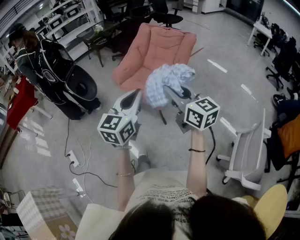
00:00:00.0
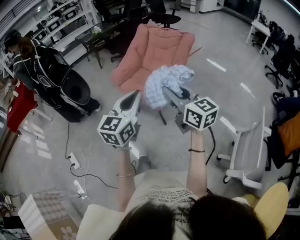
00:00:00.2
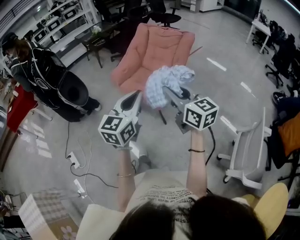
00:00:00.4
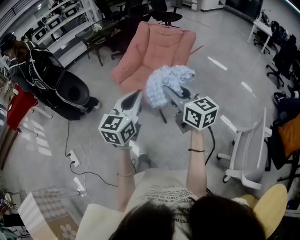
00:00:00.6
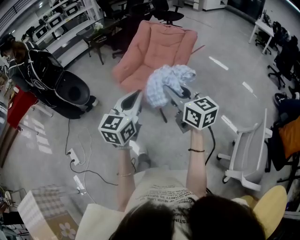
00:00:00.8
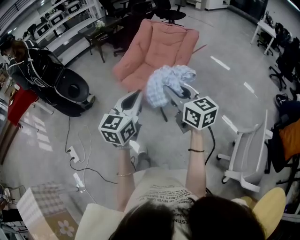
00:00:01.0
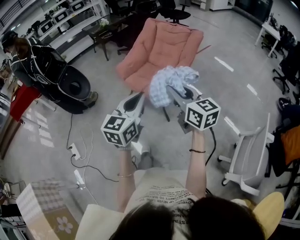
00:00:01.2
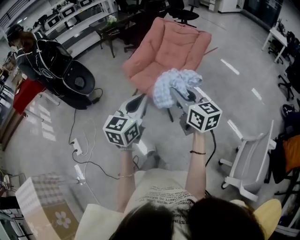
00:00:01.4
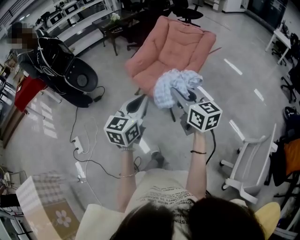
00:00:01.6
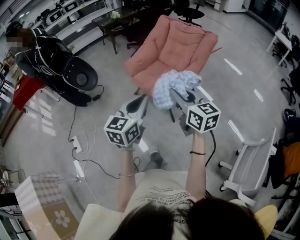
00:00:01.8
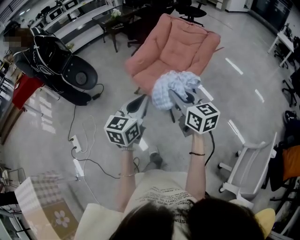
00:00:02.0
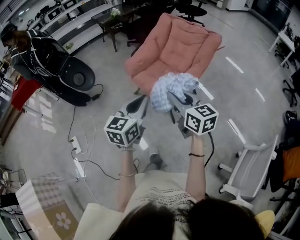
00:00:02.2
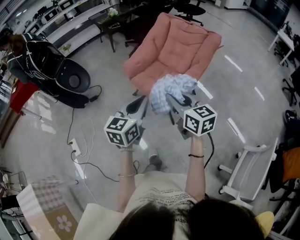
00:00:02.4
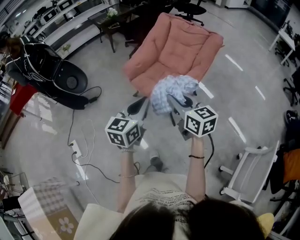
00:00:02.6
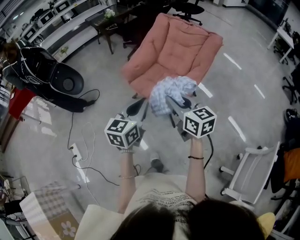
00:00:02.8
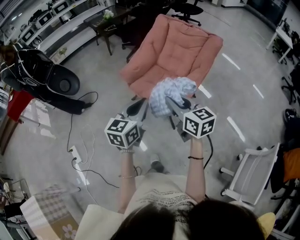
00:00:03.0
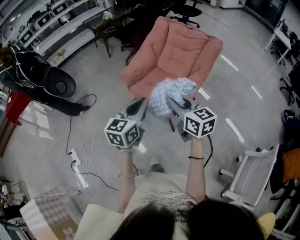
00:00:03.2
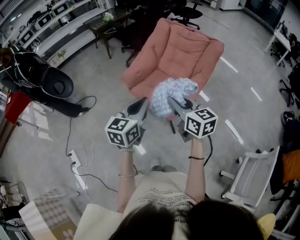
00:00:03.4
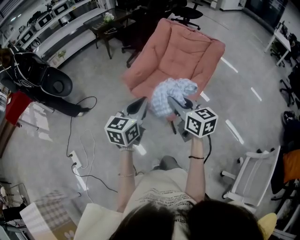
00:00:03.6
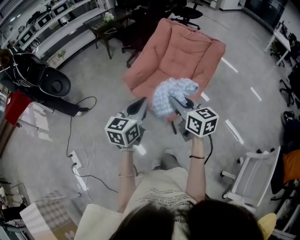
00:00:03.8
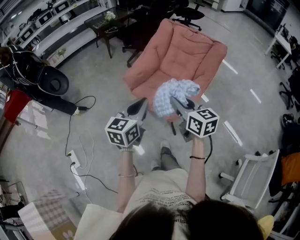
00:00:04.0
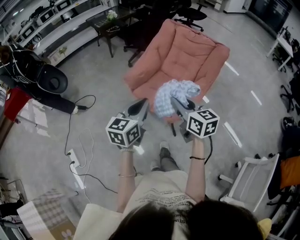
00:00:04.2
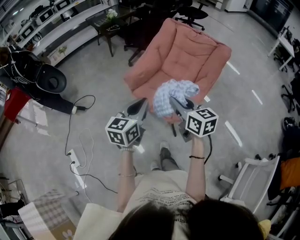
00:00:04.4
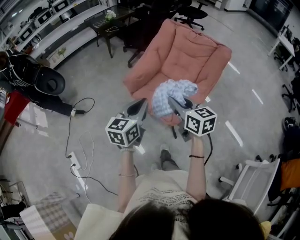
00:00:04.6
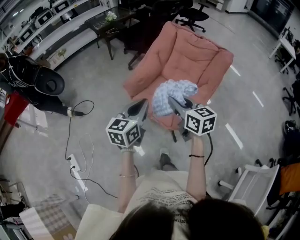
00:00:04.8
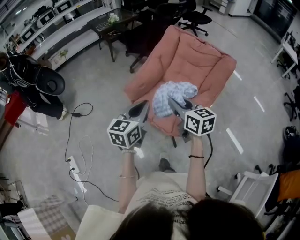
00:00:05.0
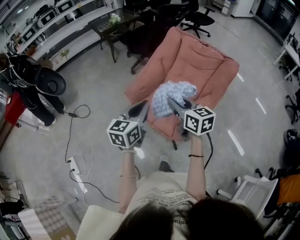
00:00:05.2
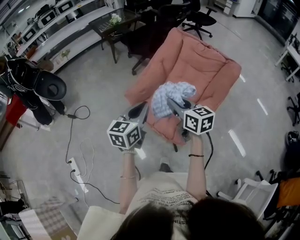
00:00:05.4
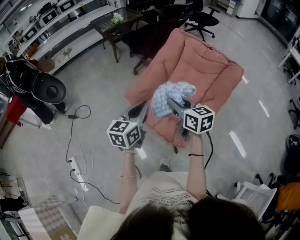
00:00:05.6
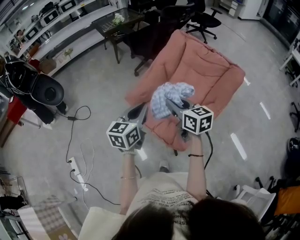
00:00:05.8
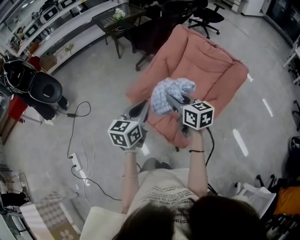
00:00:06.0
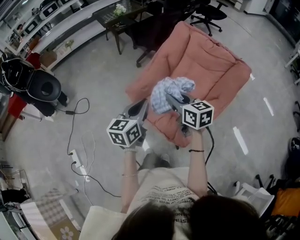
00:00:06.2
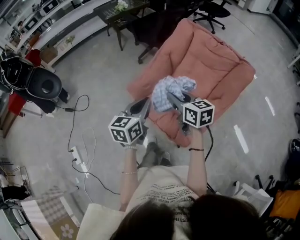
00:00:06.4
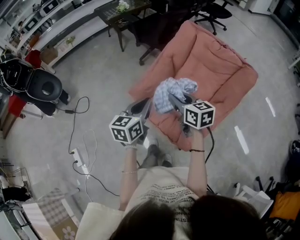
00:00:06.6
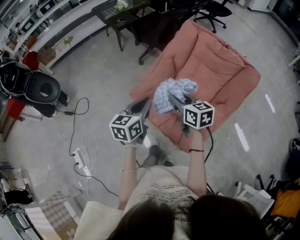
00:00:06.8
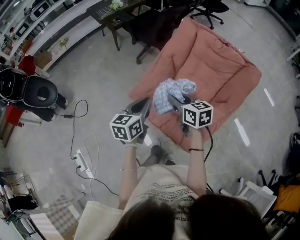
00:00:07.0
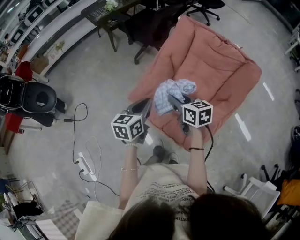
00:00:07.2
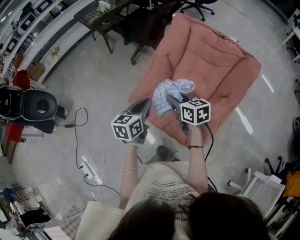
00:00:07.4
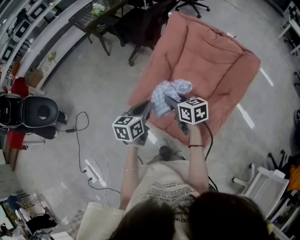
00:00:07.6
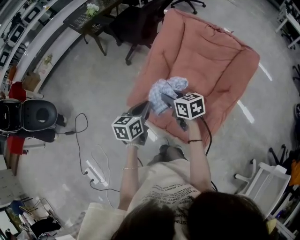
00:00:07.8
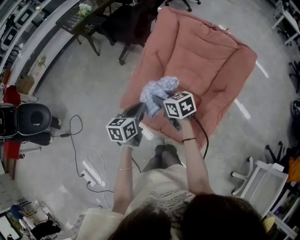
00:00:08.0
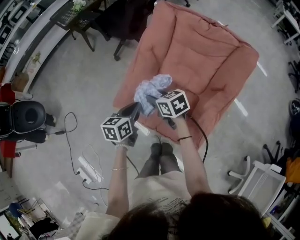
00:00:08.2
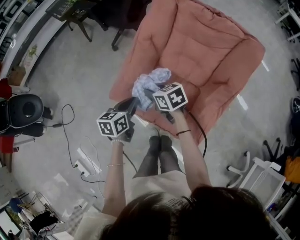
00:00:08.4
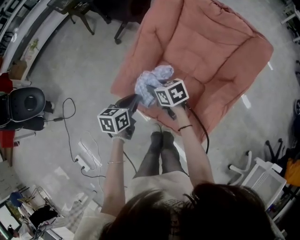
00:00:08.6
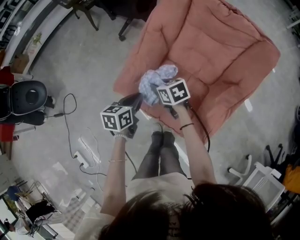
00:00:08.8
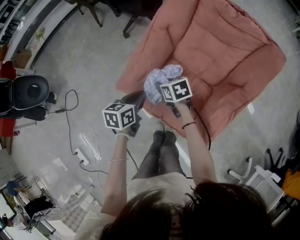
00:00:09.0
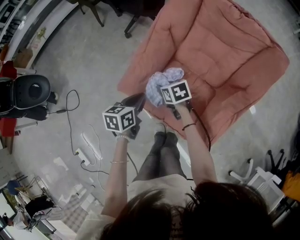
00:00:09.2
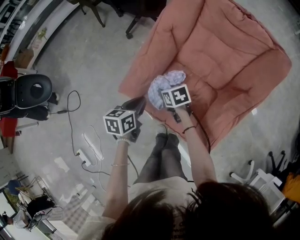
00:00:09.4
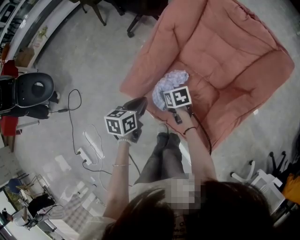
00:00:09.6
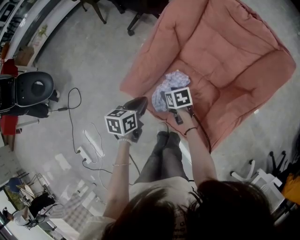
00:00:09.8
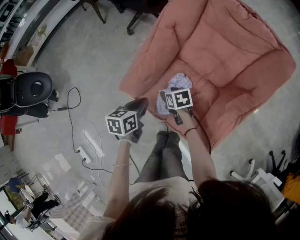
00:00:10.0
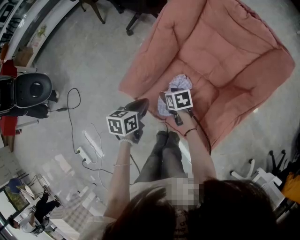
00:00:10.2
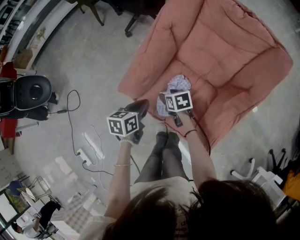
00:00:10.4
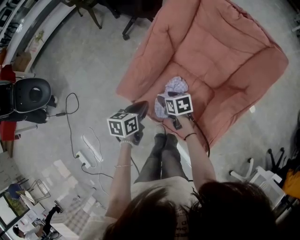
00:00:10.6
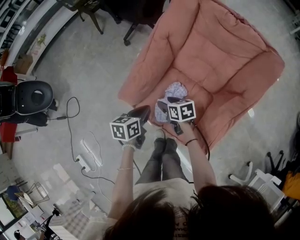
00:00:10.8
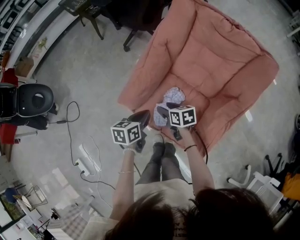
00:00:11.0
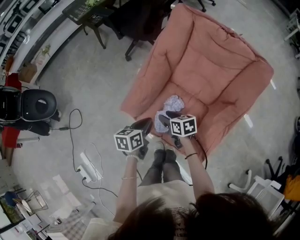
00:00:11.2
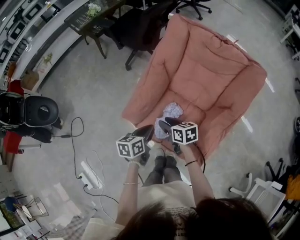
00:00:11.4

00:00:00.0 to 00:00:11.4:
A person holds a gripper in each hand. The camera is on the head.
00:00:00.0 to 00:00:01.4: The right gripper shifts by approximately 5 cm.
00:00:01.4 to 00:00:02.8: The grippers both shift forward by about 15 cm.
00:00:02.8 to 00:00:04.2: The two grippers go approximately 10 cm forward.
00:00:04.2 to 00:00:05.6: Both grippers travel together forward, about 20 cm.
00:00:05.6 to 00:00:07.2: Both grippers move forward and downward, roughly 20 cm.
00:00:07.2 to 00:00:08.6: The left gripper is displaced downward by some 20 cm, while the right gripper goes roughly 20 cm downward and forward.
00:00:08.6 to 00:00:10.0: The left gripper shifts approximately 5 cm downward. Meanwhile the right gripper moves downward, roughly 15 cm, and opens.
00:00:10.0 to 00:00:11.4: The right gripper shifts approximately 15 cm upward, and changes its angle by about 20 degrees, while the left gripper moves upward, about 10 cm.

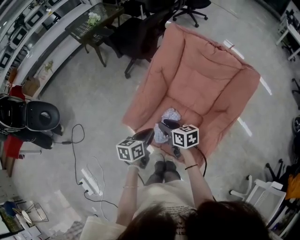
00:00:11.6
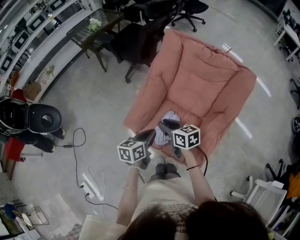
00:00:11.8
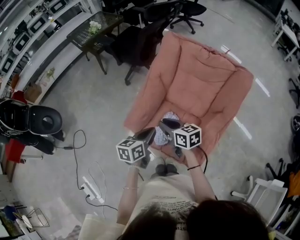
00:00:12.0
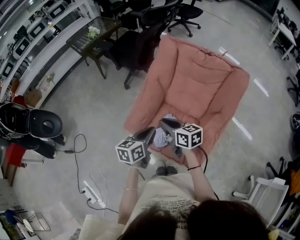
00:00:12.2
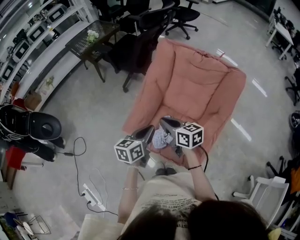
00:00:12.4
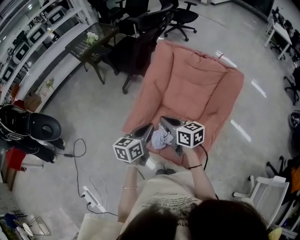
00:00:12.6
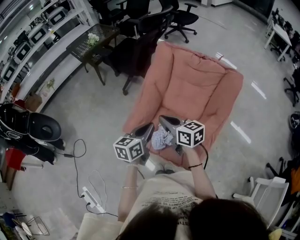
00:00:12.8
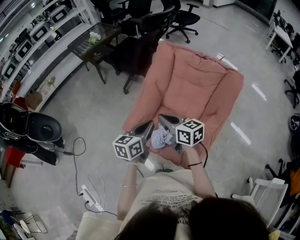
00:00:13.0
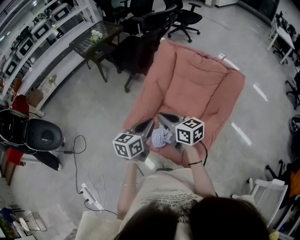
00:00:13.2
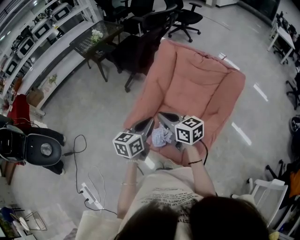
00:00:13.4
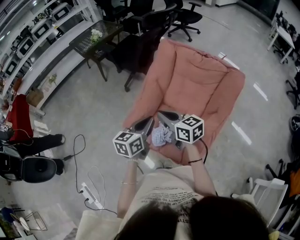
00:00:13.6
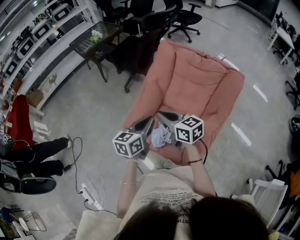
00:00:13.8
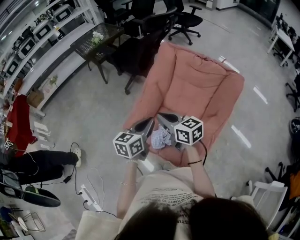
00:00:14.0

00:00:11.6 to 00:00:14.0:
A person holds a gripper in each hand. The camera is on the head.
00:00:11.6 to 00:00:12.8: The grippers both shift upward by approximately 15 cm. The right gripper closes.
00:00:12.8 to 00:00:14.0: The grippers make only small movements.

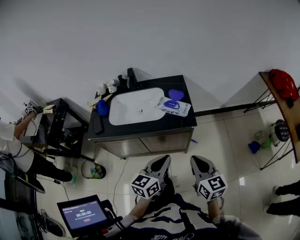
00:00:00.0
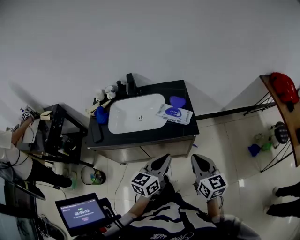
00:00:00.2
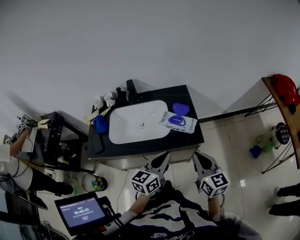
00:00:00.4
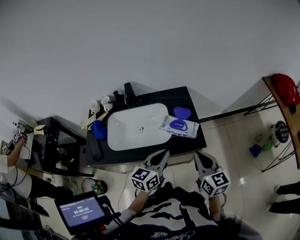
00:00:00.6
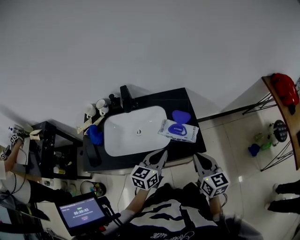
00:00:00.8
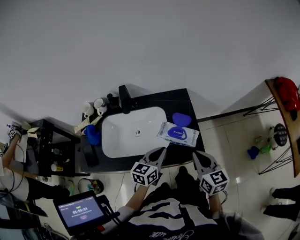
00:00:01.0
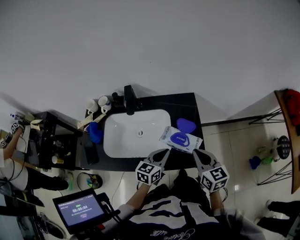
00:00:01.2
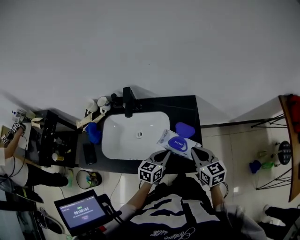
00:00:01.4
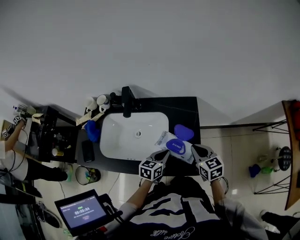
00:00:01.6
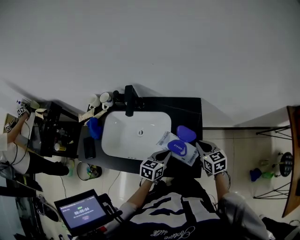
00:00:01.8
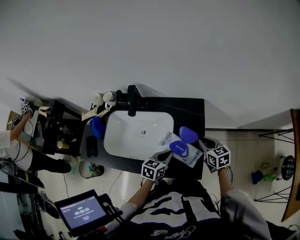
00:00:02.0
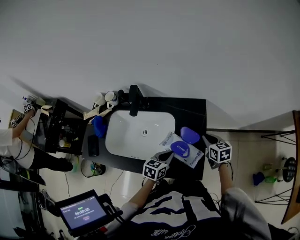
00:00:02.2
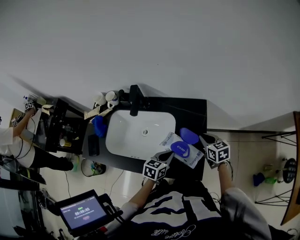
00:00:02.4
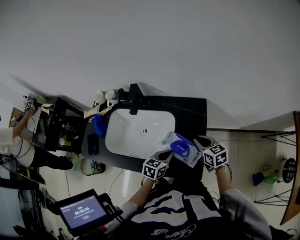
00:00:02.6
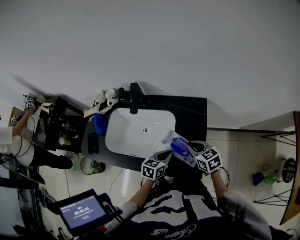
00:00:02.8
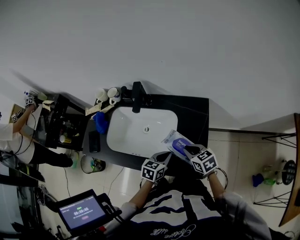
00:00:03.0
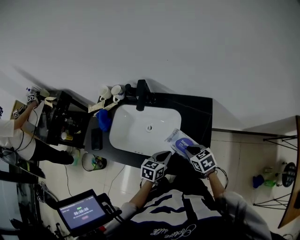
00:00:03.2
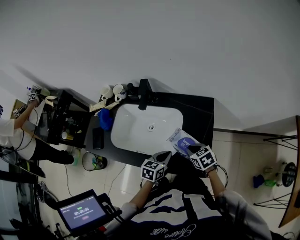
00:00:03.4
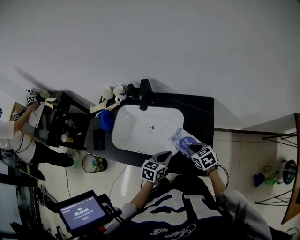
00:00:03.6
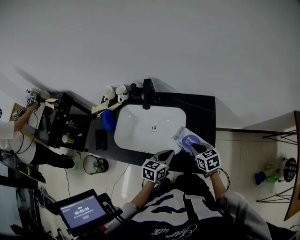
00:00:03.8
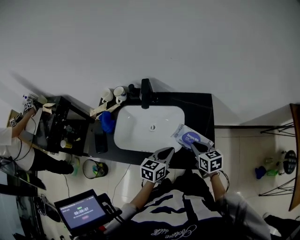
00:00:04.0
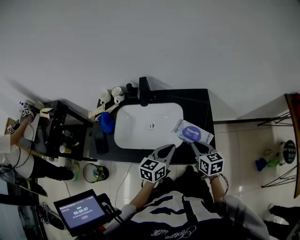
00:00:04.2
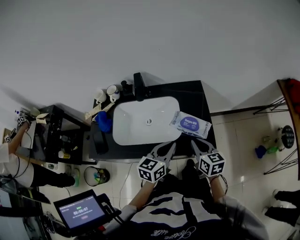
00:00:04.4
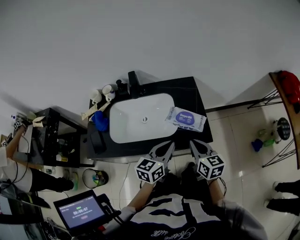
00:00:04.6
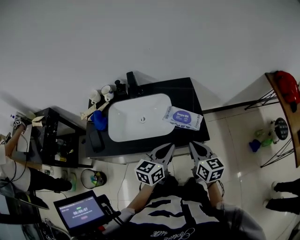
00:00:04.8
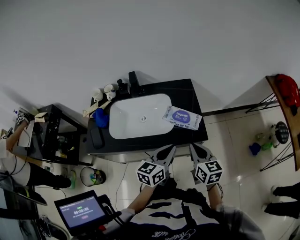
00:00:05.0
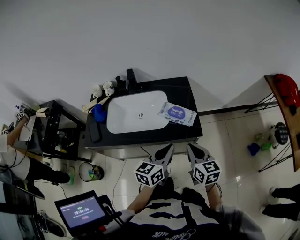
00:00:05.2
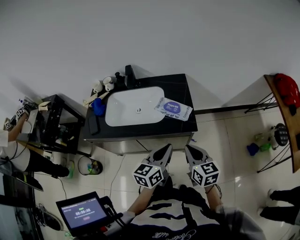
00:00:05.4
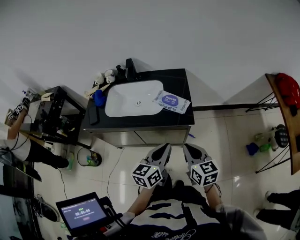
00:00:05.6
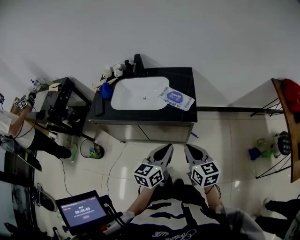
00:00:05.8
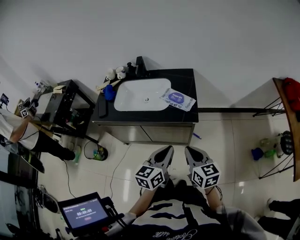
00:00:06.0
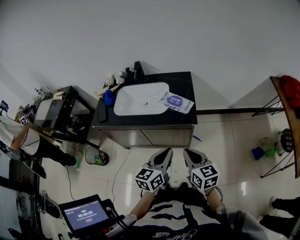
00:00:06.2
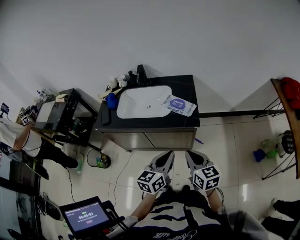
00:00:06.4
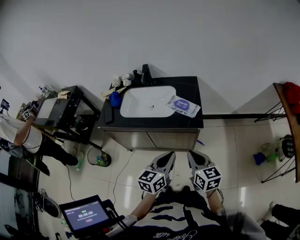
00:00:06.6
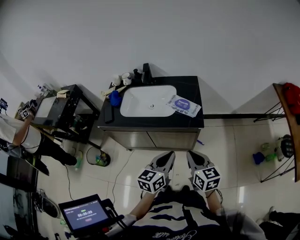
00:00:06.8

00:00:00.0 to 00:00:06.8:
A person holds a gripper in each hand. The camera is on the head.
00:00:00.0 to 00:00:01.4: The left gripper shifts approximately 35 cm forward and downward. Meanwhile the right gripper goes some 35 cm forward.
00:00:01.4 to 00:00:02.8: The right gripper shifts some 10 cm downward and forward, and turns by some 20 degrees.
00:00:02.8 to 00:00:04.0: The right gripper reaches some 5 cm downward, then returns. The left gripper moves upward and to the left, roughly 10 cm.
00:00:04.0 to 00:00:05.4: The left gripper travels backward, upward and to the right by about 25 cm. The right gripper is displaced backward and upward by about 25 cm.
00:00:05.4 to 00:00:06.8: Both grippers move backward, approximately 10 cm.

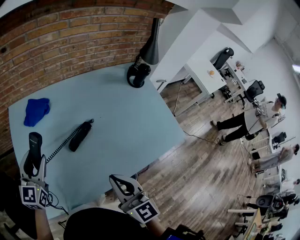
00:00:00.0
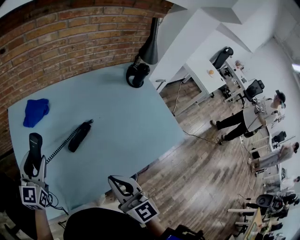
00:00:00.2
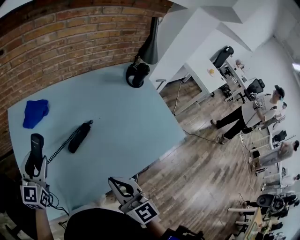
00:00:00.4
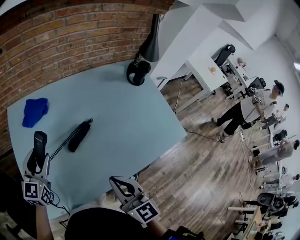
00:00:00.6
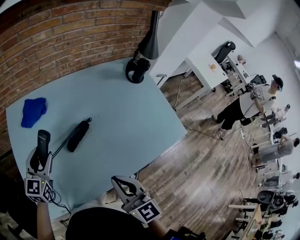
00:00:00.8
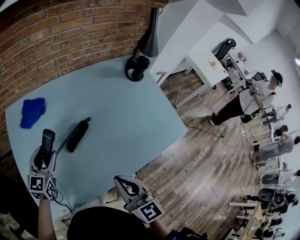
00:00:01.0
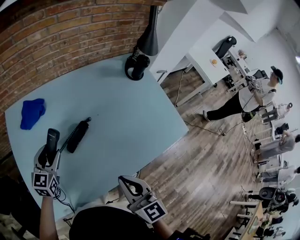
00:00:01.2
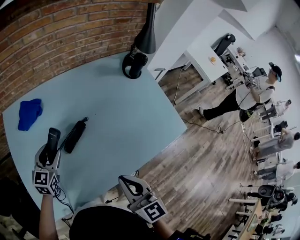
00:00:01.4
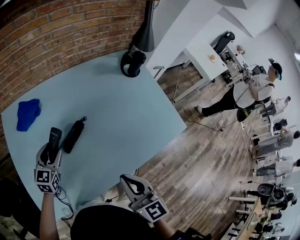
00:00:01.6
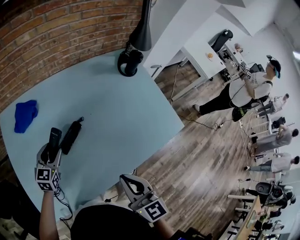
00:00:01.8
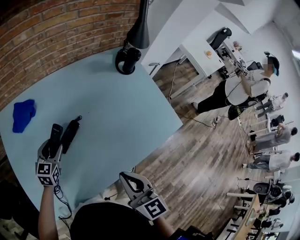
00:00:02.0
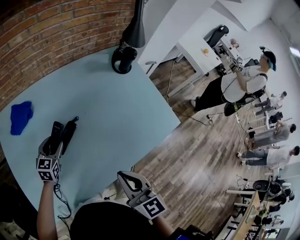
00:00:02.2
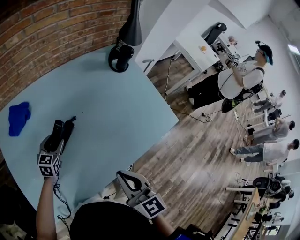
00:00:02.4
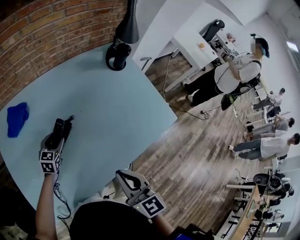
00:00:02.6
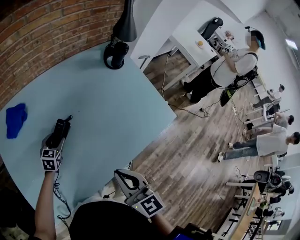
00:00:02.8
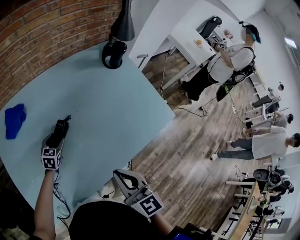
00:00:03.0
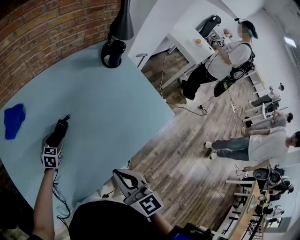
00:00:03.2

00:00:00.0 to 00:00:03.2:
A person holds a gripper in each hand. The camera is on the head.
00:00:00.0 to 00:00:01.6: The right gripper goes approximately 5 cm to the right. Meanwhile the left gripper is displaced downward, to the right and forward by roughly 15 cm.
00:00:01.6 to 00:00:03.2: The left gripper shifts about 15 cm downward, to the right and forward, and swivels approximately 20 degrees.
